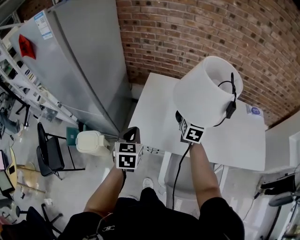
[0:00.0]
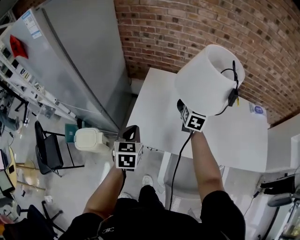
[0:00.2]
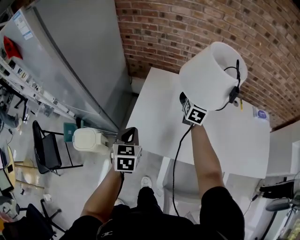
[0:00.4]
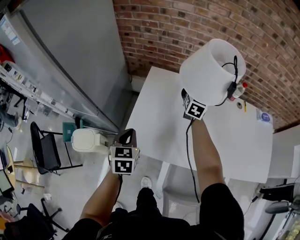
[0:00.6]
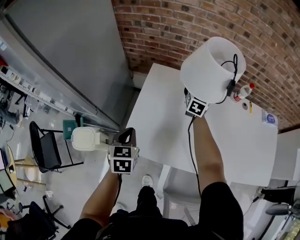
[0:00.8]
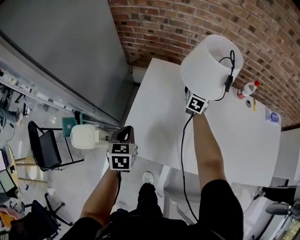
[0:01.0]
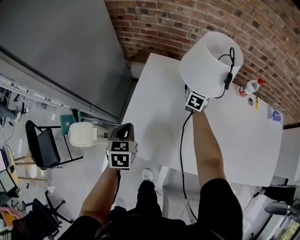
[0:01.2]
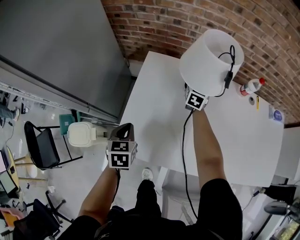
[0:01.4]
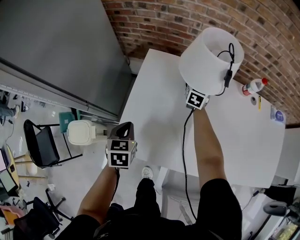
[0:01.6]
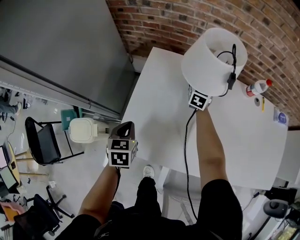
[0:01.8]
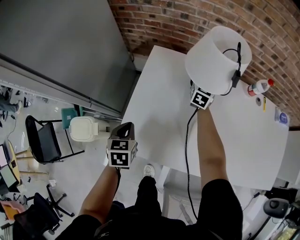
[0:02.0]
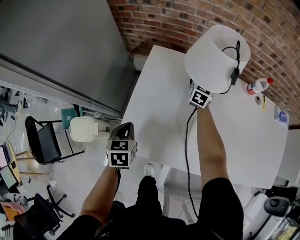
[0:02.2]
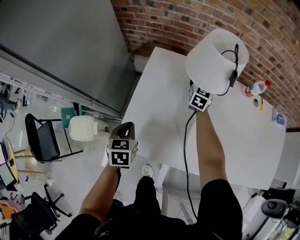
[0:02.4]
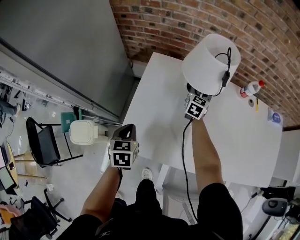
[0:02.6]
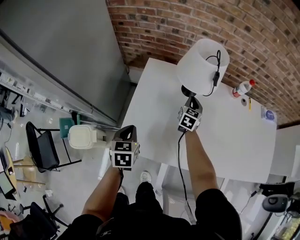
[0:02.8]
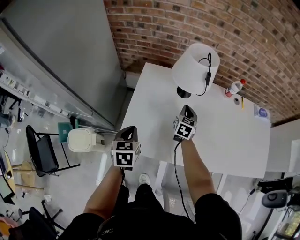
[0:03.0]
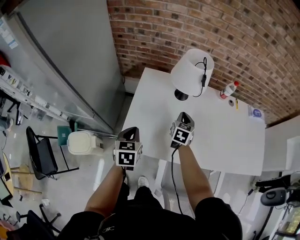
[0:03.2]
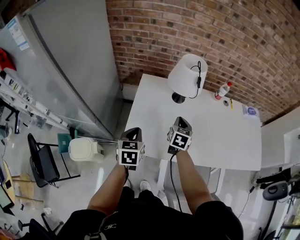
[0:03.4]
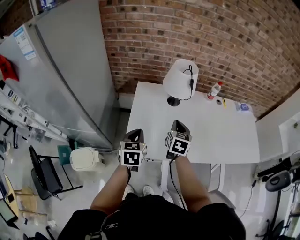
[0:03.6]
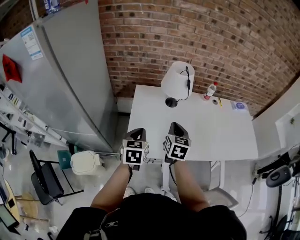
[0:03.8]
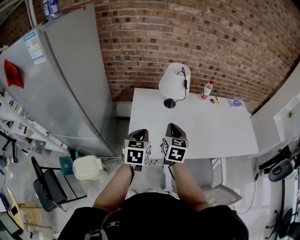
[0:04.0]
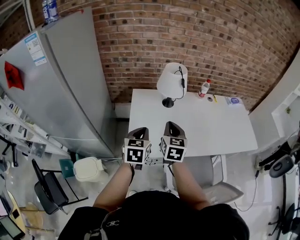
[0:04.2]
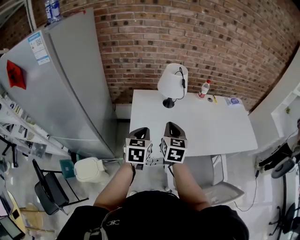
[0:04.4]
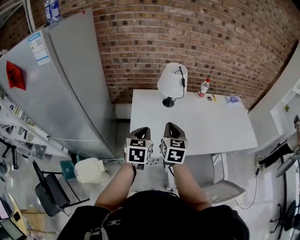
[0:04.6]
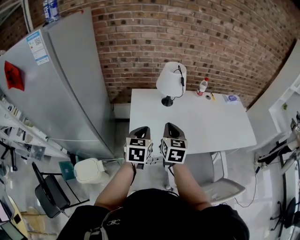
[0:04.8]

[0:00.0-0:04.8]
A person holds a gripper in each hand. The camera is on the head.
0:00.0 to 0:01.6: The right gripper is displaced forward and downward by approximately 35 cm. The left gripper shifts about 20 cm downward and forward.
0:01.6 to 0:03.2: The right gripper heads backward, covering approximately 25 cm, and closes up; the left gripper is displaced upward and backward by about 10 cm.
0:03.2 to 0:04.8: The right gripper heads backward, upward and to the left, covering roughly 30 cm. Meanwhile the left gripper travels upward and backward by some 15 cm, and turns by about 20 degrees.

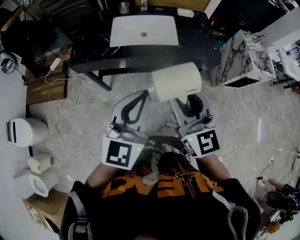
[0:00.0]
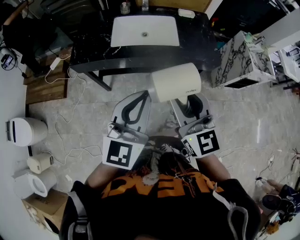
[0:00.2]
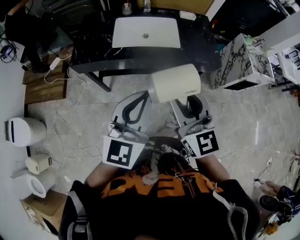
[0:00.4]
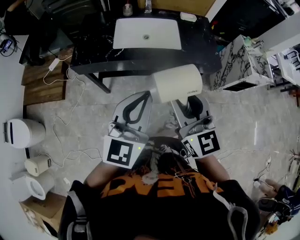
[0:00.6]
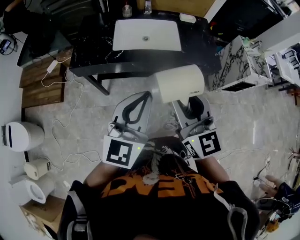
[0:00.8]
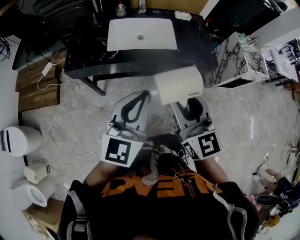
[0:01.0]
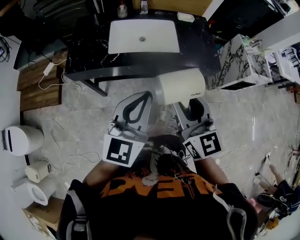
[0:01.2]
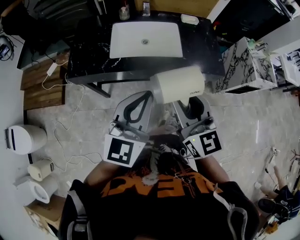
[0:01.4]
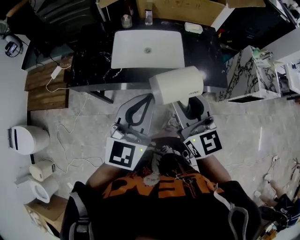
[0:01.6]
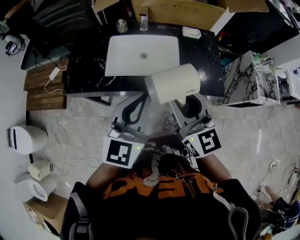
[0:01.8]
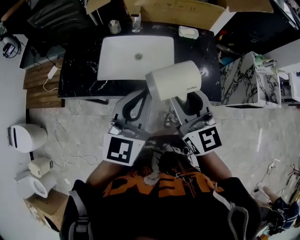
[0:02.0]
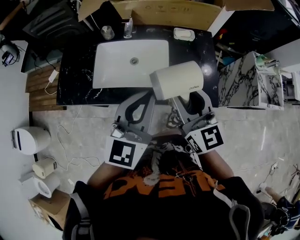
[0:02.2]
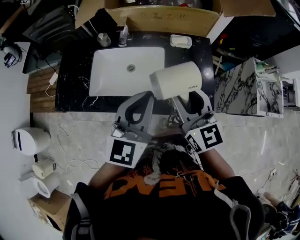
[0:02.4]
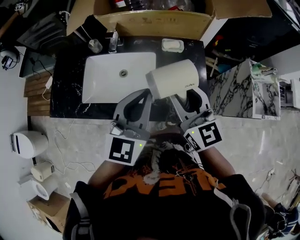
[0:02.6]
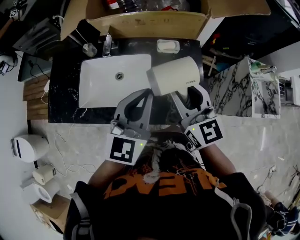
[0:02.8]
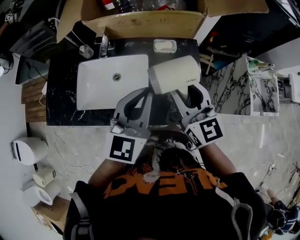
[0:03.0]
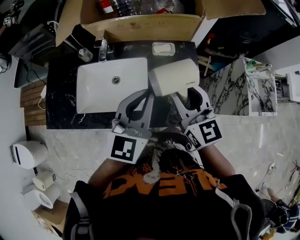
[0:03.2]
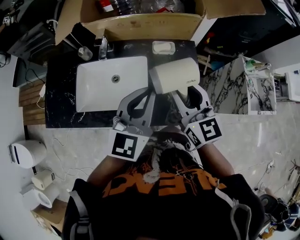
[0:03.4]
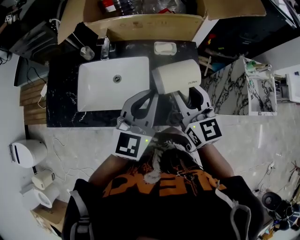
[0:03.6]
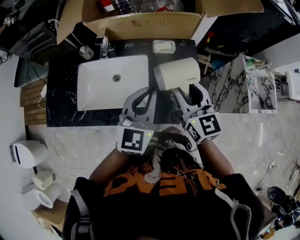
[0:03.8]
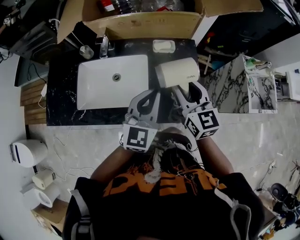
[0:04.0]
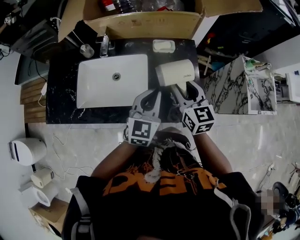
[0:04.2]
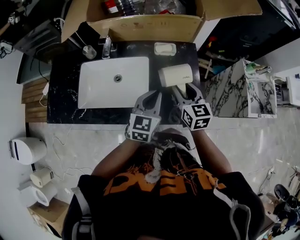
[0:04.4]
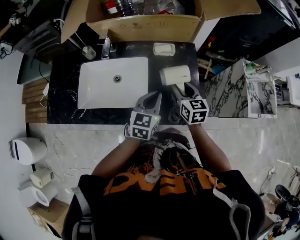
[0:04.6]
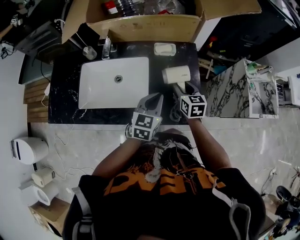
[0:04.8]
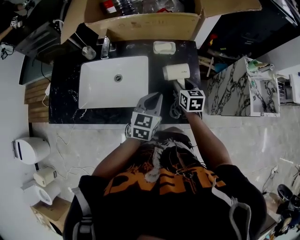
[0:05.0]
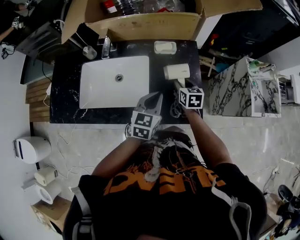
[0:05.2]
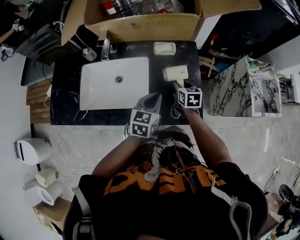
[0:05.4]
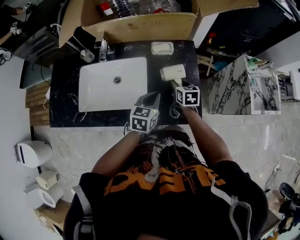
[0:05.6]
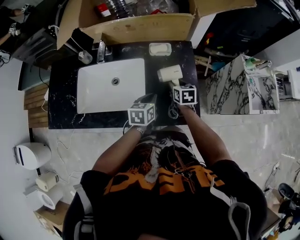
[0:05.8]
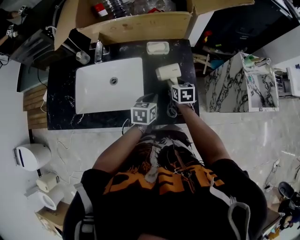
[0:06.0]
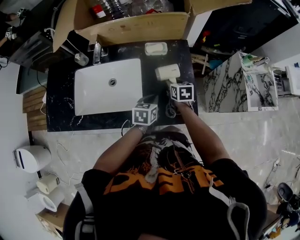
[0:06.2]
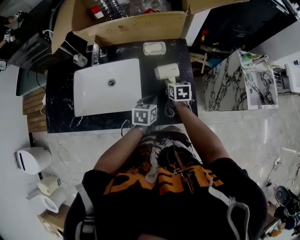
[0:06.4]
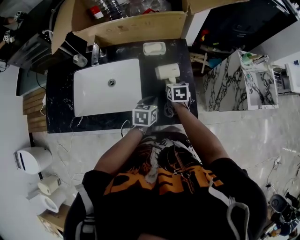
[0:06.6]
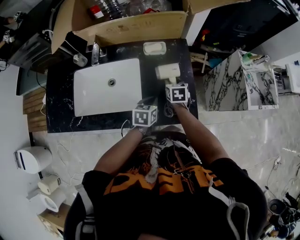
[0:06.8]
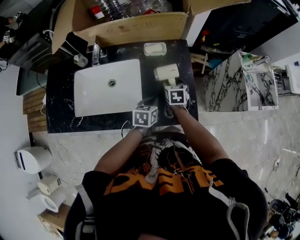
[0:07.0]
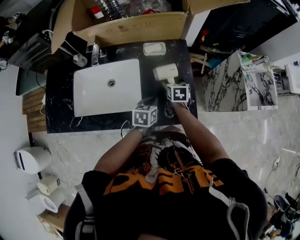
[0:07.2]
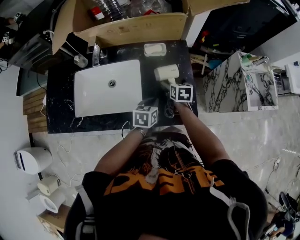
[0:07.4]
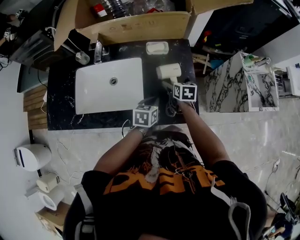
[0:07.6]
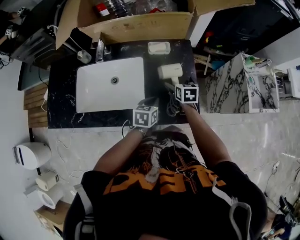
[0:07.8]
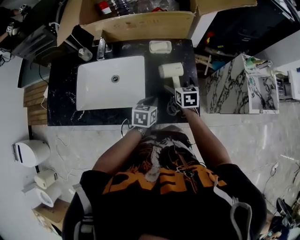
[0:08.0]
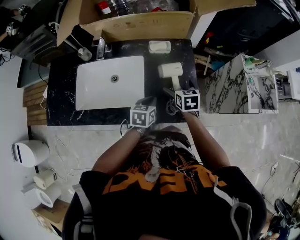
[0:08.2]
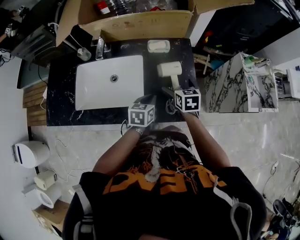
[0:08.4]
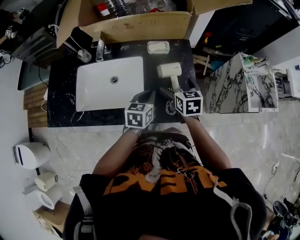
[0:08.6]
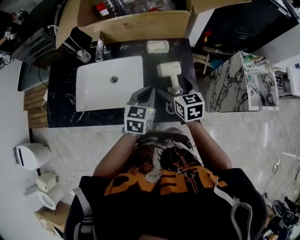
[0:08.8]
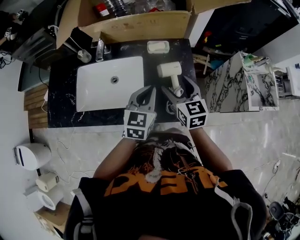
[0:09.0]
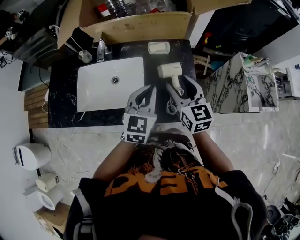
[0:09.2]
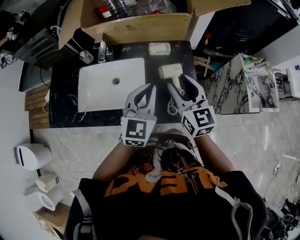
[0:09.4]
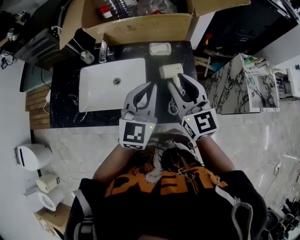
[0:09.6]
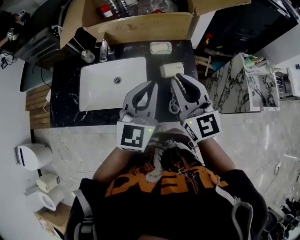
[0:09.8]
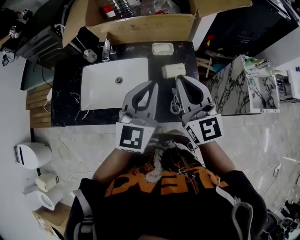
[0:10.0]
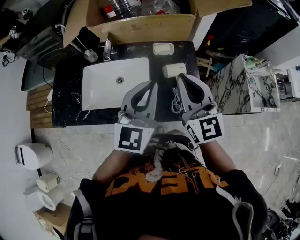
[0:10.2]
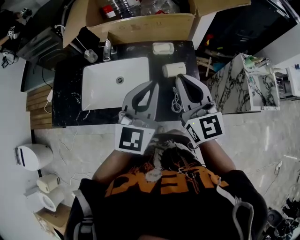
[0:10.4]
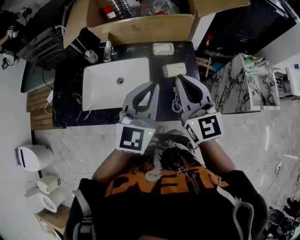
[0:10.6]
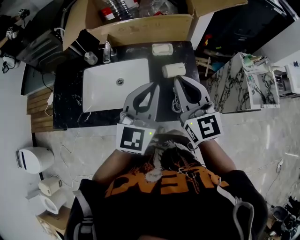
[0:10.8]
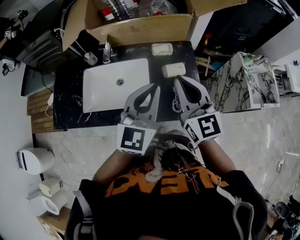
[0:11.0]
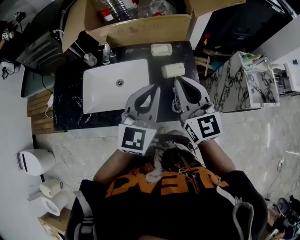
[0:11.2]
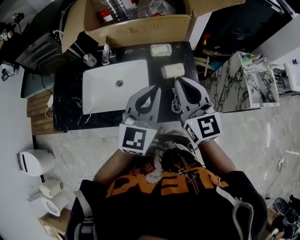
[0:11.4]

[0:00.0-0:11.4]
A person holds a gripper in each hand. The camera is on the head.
0:00.0 to 0:01.4: The two grippers go approximately 10 cm forward.
0:01.4 to 0:02.8: The pair of grippers is taken forward and to the right, roughly 40 cm.
0:02.8 to 0:04.2: The two grippers go roughly 10 cm downward.
0:04.2 to 0:05.6: The right gripper heads downward, covering about 20 cm, and changes its angle by some 30 degrees, while the left gripper travels downward by roughly 10 cm, and rotates some 30 degrees.
0:05.6 to 0:07.2: The left gripper heads downward, covering some 5 cm, while the right gripper opens.
0:07.2 to 0:08.6: The left gripper moves upward, approximately 5 cm. The right gripper travels upward and backward by some 10 cm.
0:08.6 to 0:10.0: The two grippers go about 25 cm upward. The right gripper tips its fingers upward by roughly 40 degrees, and closes its fingers. Meanwhile the left gripper tilts its fingers about 30 degrees upward.
0:10.0 to 0:11.4: The grippers move only a little.

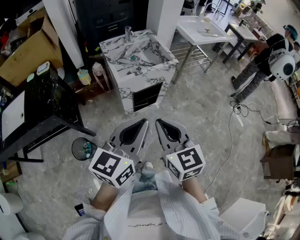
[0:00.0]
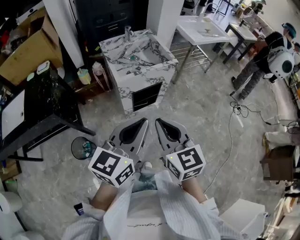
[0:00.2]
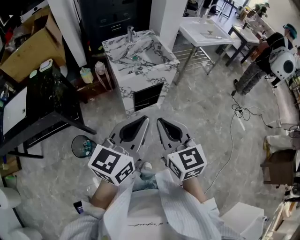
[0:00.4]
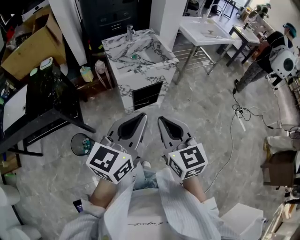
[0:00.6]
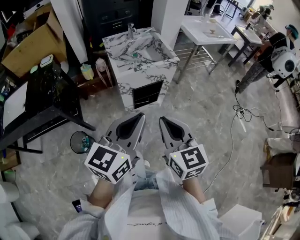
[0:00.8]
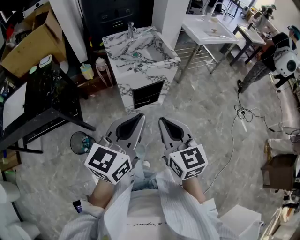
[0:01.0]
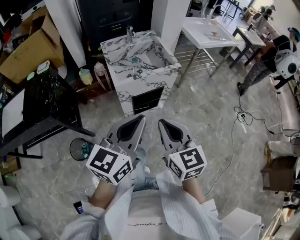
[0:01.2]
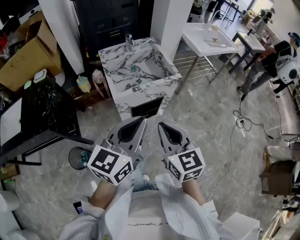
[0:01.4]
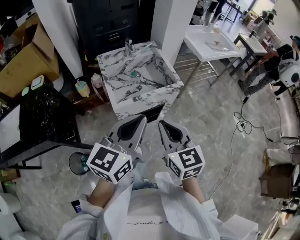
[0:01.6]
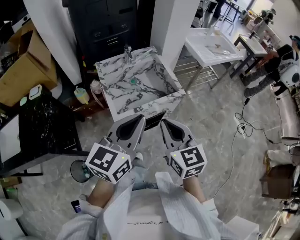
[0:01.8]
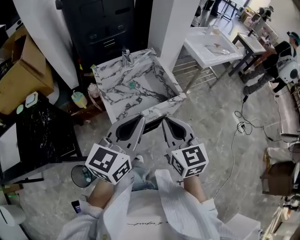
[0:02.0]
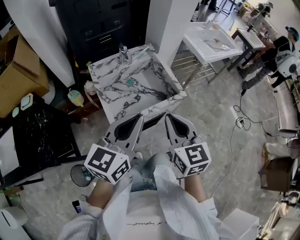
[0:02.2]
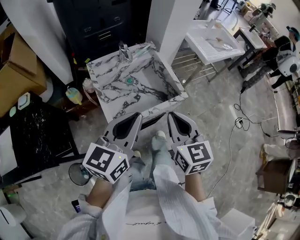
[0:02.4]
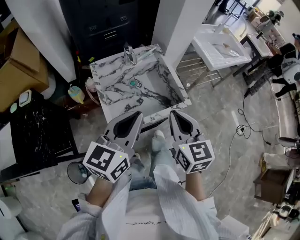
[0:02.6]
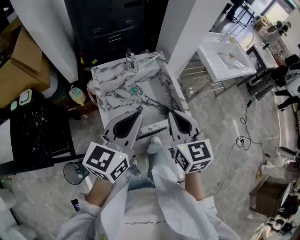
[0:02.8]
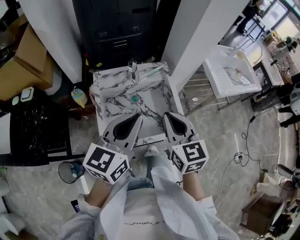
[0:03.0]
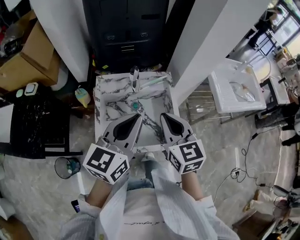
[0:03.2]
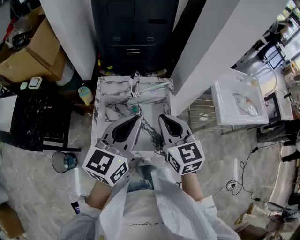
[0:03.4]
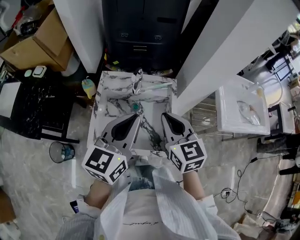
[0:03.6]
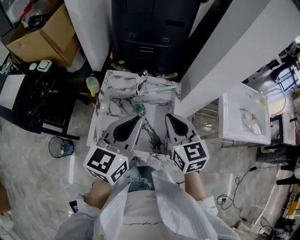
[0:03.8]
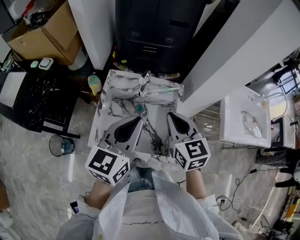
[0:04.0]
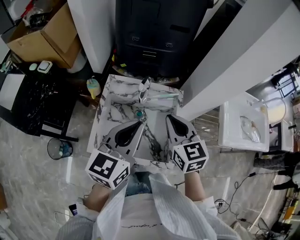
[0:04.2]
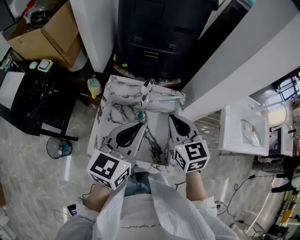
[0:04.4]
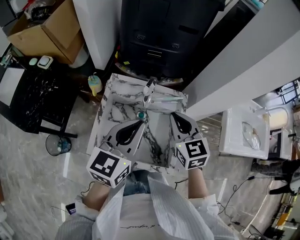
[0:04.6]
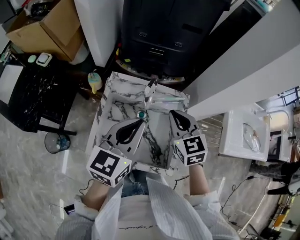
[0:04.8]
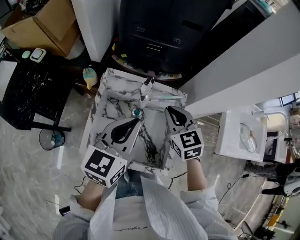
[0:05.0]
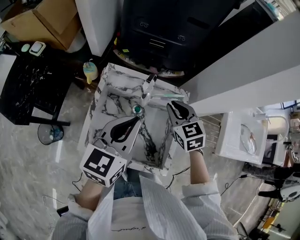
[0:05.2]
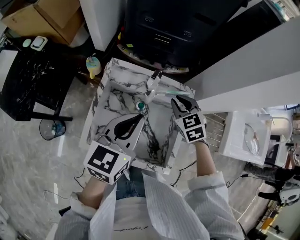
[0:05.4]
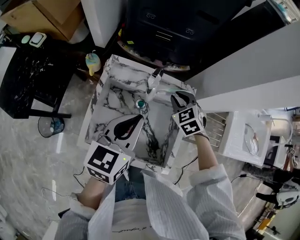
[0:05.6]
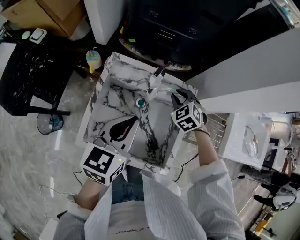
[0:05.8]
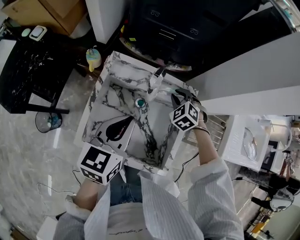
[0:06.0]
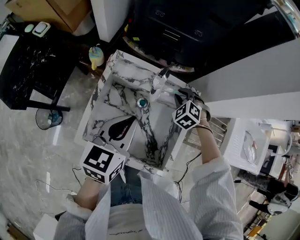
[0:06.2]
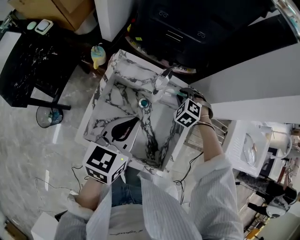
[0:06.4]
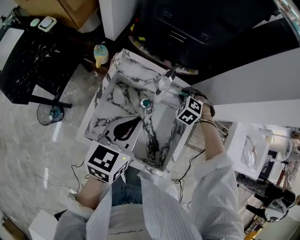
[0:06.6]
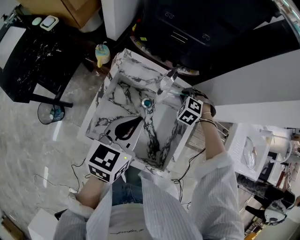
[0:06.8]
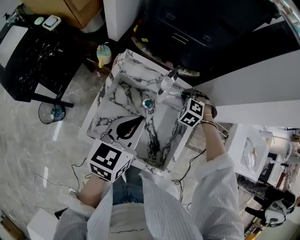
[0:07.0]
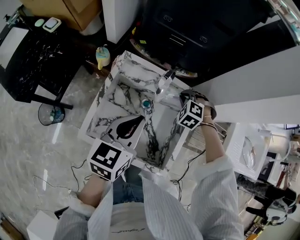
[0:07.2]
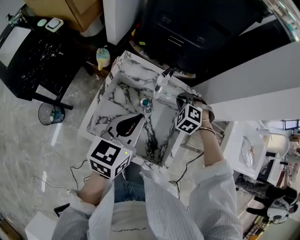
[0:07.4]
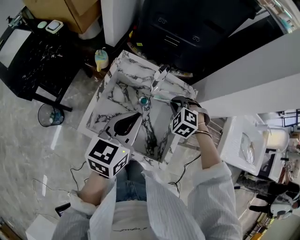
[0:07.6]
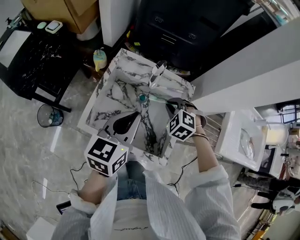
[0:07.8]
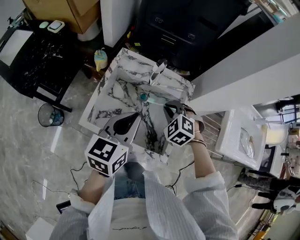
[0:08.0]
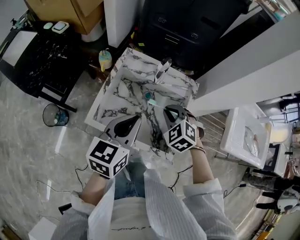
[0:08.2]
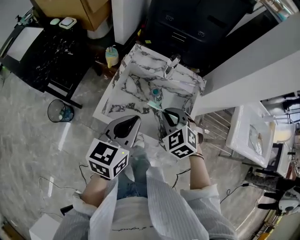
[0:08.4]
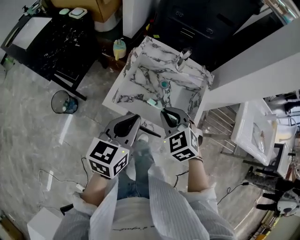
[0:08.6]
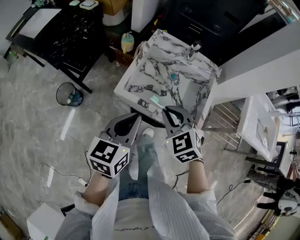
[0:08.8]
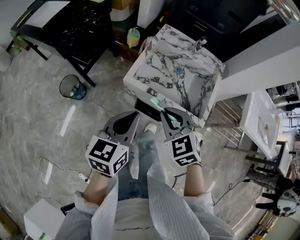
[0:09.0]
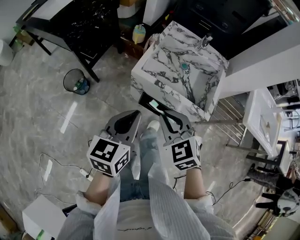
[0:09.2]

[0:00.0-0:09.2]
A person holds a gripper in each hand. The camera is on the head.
0:00.0 to 0:01.6: Both grippers travel together forward, about 20 cm.
0:01.6 to 0:03.0: The two grippers go some 30 cm forward.
0:03.0 to 0:04.6: The left gripper moves forward, approximately 10 cm, and turns by approximately 20 degrees. Meanwhile the right gripper moves forward, roughly 15 cm, and swivels about 30 degrees.
0:04.6 to 0:06.2: The right gripper goes about 25 cm downward and forward, and rolls counterclockwise, seen from behind, by roughly 50 degrees, while the left gripper shifts roughly 10 cm downward.
0:06.2 to 0:07.6: The right gripper is displaced backward by approximately 10 cm.
0:07.6 to 0:09.2: Both grippers travel together backward and to the left, approximately 35 cm. The right gripper swivels roughly 40 degrees.
